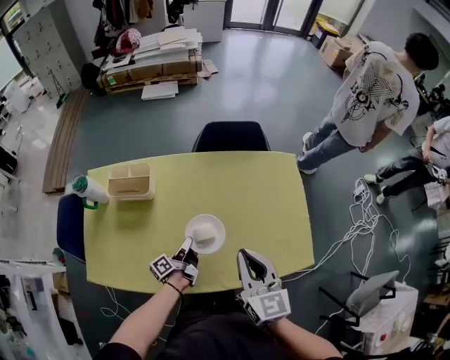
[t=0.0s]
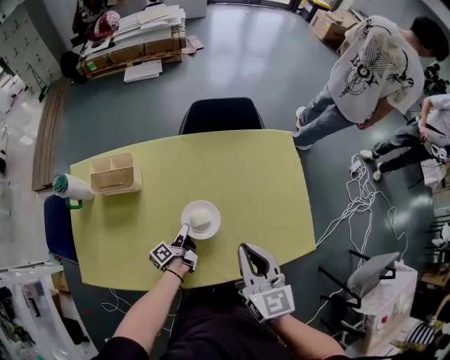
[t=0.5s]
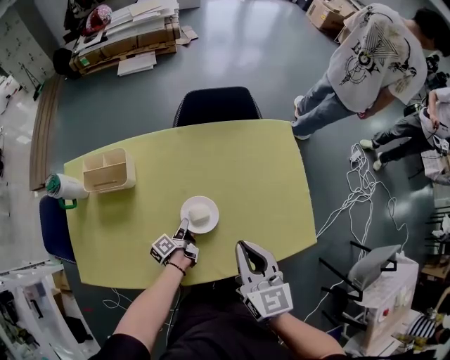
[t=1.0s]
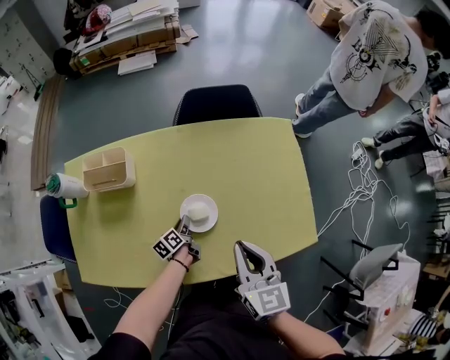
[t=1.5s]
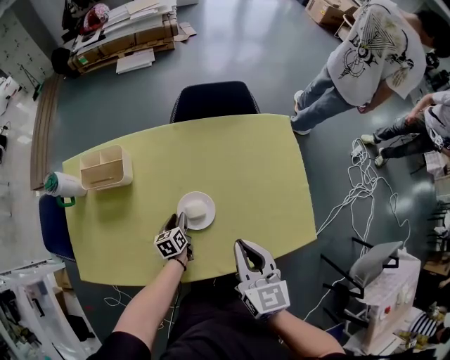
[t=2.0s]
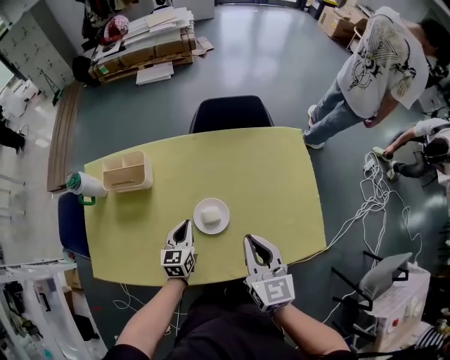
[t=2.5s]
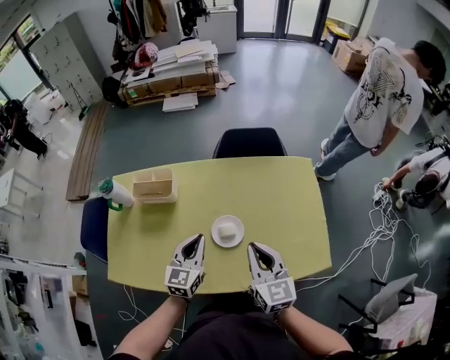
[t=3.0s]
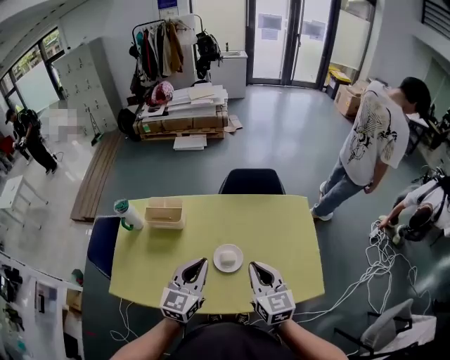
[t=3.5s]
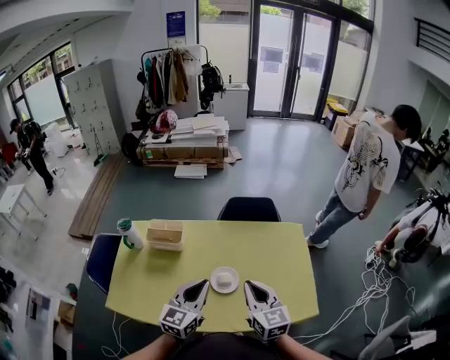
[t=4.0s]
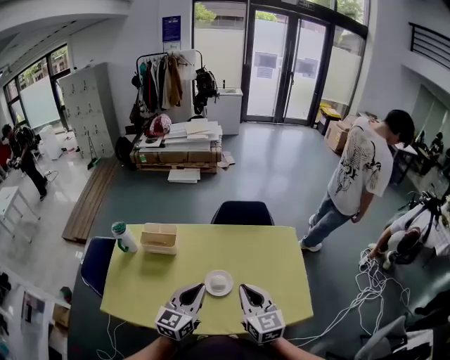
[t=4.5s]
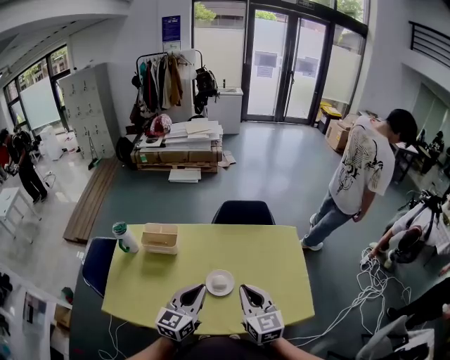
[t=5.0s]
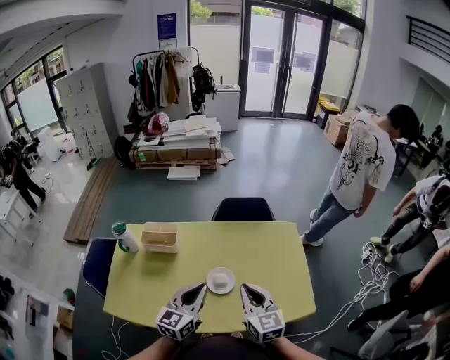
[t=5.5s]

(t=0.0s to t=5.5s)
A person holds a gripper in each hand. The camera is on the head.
t=0.0s - t=2.0s: Both grippers move downward, approximately 10 cm. The left gripper rolls clockwise, seen from behind, by some 50 degrees, and opens up.
t=2.0s - t=3.5s: The right gripper moves upward, roughly 10 cm. Meanwhile the left gripper is displaced upward by approximately 40 cm, angles its fingers upward, by about 30 degrees, and closes up.
t=3.5s - t=5.5s: The grippers make only small movements.

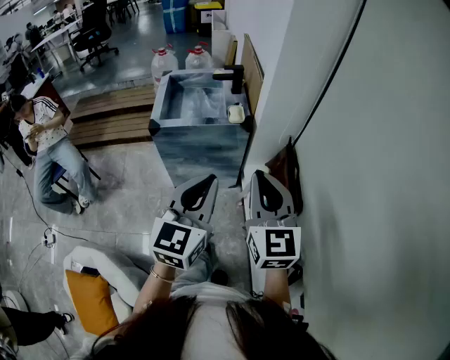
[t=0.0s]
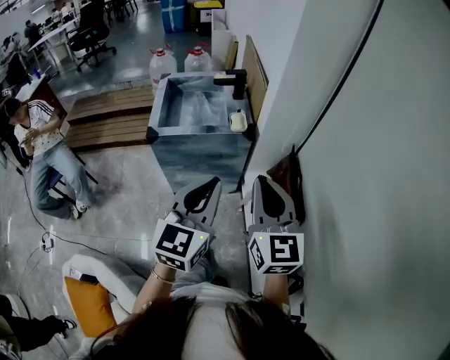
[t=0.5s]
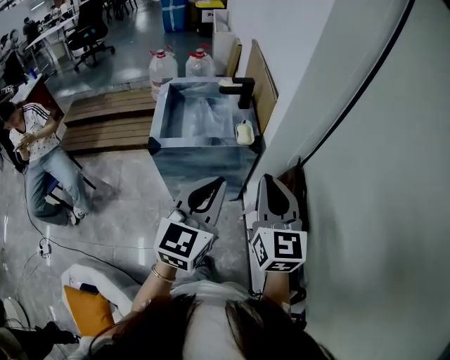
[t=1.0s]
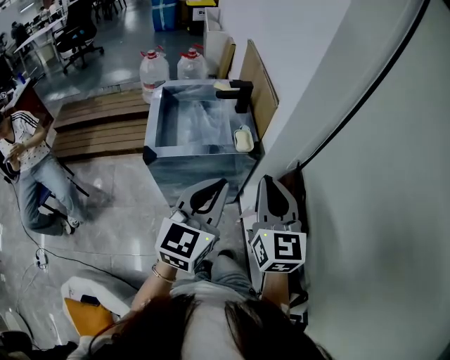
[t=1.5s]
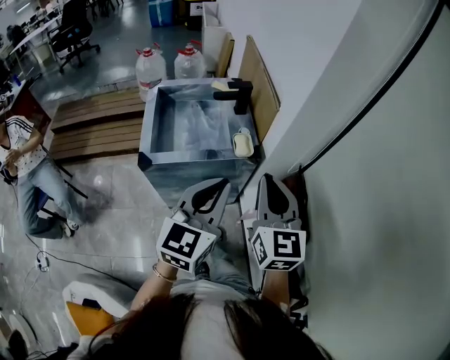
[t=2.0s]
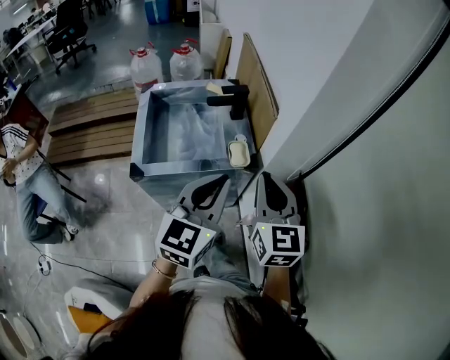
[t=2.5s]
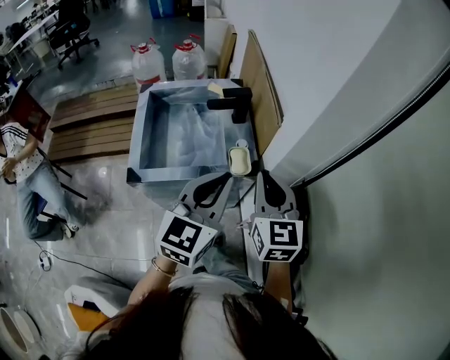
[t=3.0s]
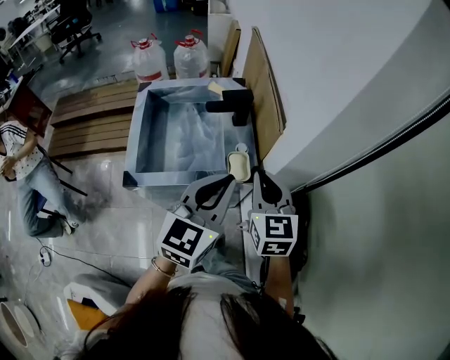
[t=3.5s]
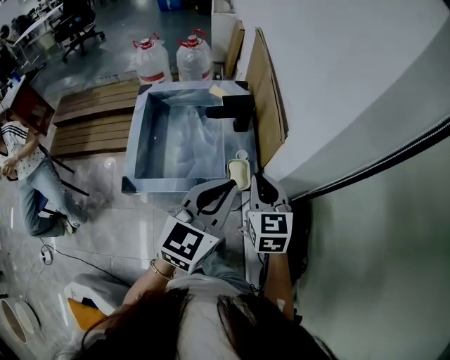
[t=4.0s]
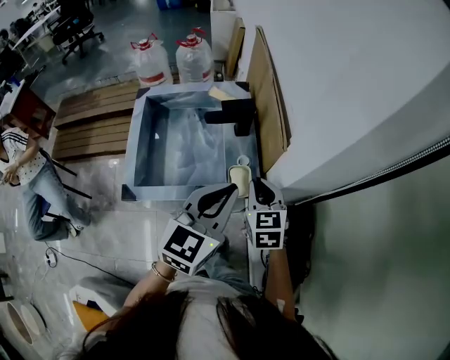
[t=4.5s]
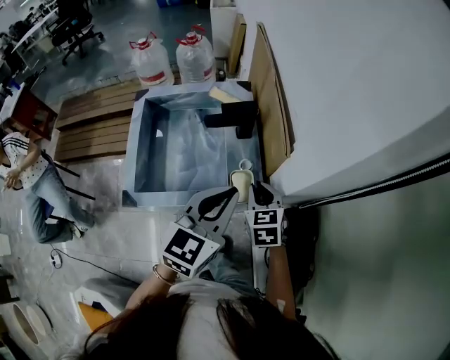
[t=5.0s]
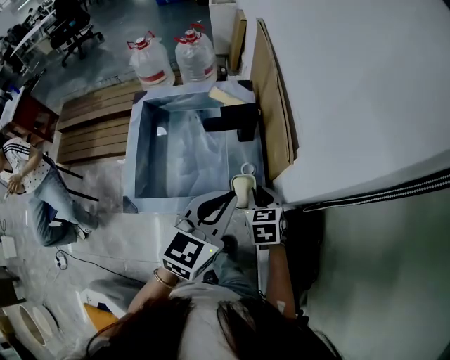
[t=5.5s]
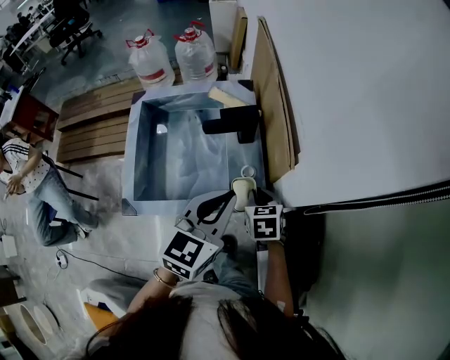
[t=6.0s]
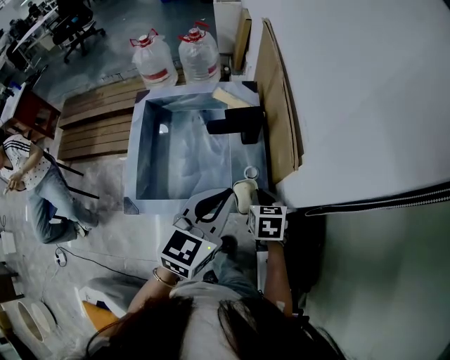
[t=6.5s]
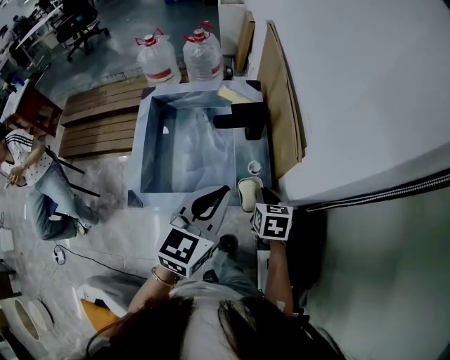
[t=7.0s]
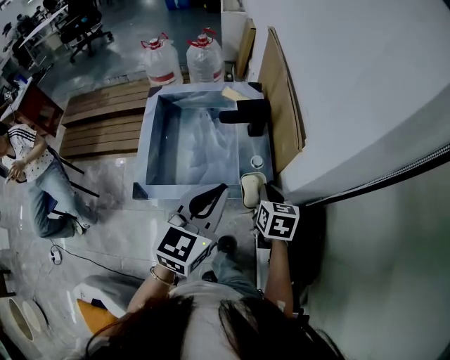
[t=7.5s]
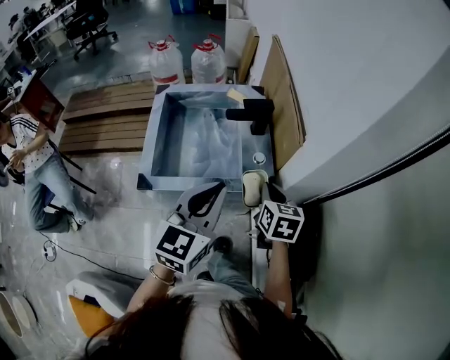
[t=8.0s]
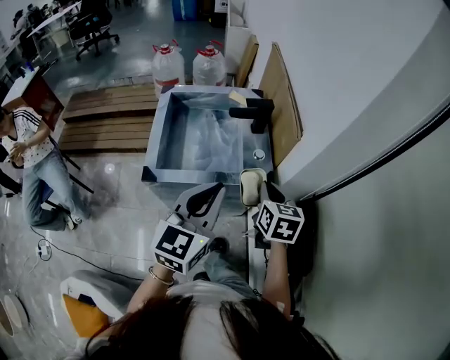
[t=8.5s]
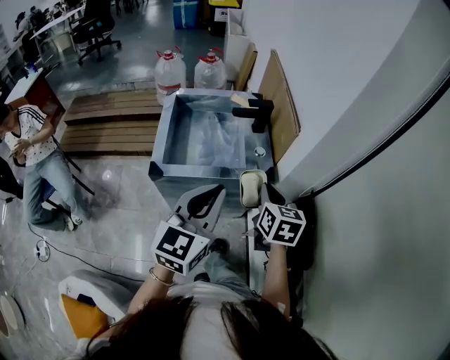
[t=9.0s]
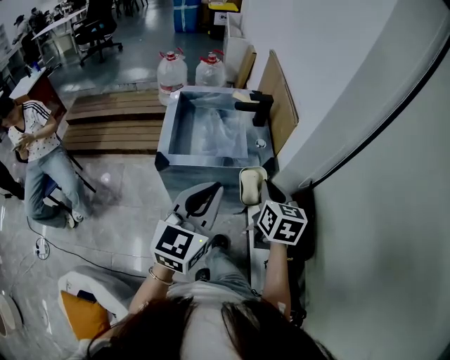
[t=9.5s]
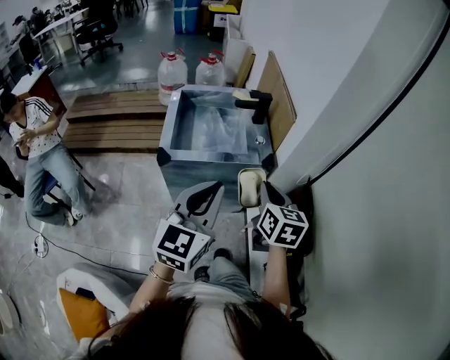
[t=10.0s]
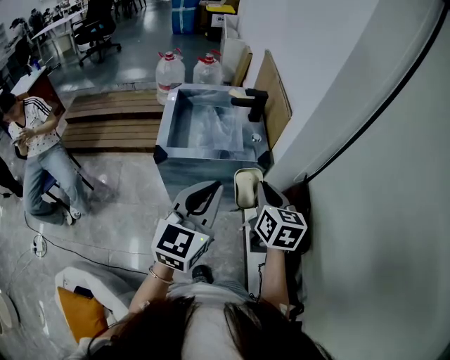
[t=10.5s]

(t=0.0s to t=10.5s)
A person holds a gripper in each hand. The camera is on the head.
t=0.0s - t=2.0s: Both grippers travel together forward, approximately 20 cm.
t=2.0s - t=4.0s: The right gripper moves forward and downward, approximately 25 cm; the left gripper heads forward, covering some 20 cm.
t=4.0s - t=6.5s: The left gripper shifts about 10 cm forward and downward. Meanwhile the right gripper heads downward and forward, covering some 20 cm, and changes its angle by approximately 30 degrees.
t=6.5s - t=8.5s: The right gripper shifts some 20 cm upward and backward. Meanwhile the left gripper goes some 15 cm backward and upward.
t=8.5s - t=10.5s: The right gripper moves backward and upward, some 20 cm, while the left gripper moves backward, some 15 cm.

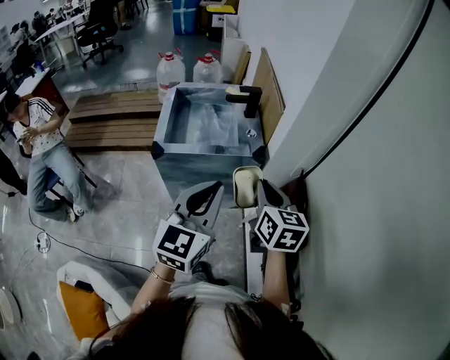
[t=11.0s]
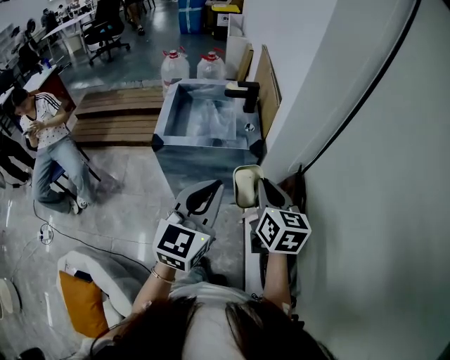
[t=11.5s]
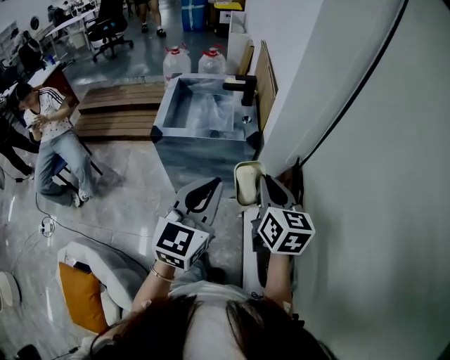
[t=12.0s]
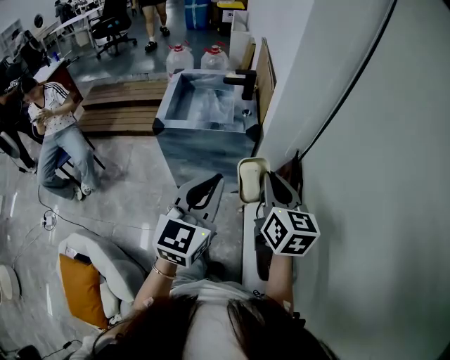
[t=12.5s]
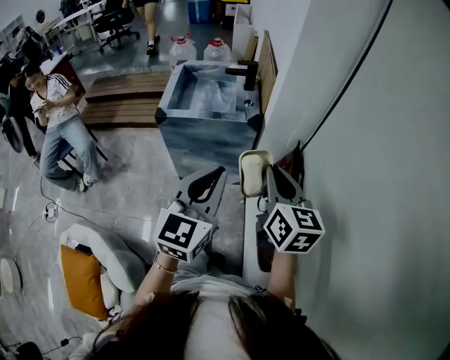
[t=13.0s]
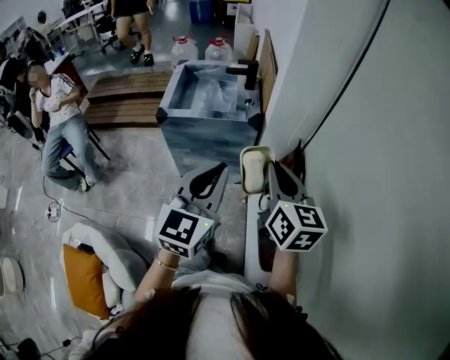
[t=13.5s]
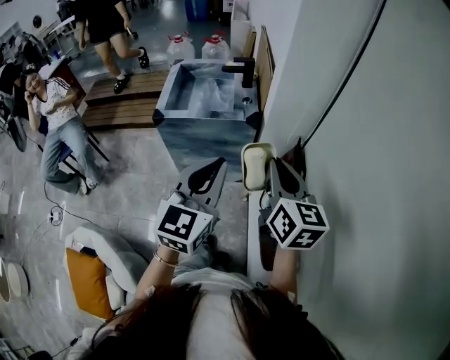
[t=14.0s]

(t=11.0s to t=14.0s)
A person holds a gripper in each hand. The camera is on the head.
t=11.0s - t=12.5s: The grippers both shift backward and to the right by about 15 cm.
t=12.5s - t=14.0s: The grippers move only a little.

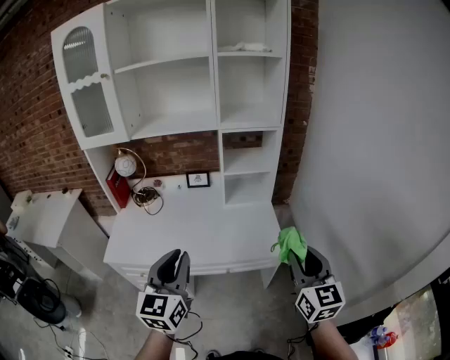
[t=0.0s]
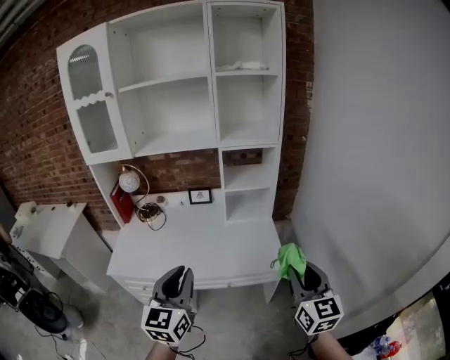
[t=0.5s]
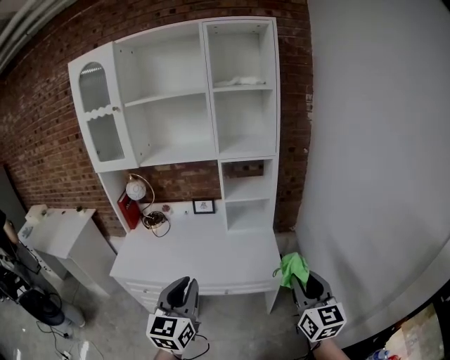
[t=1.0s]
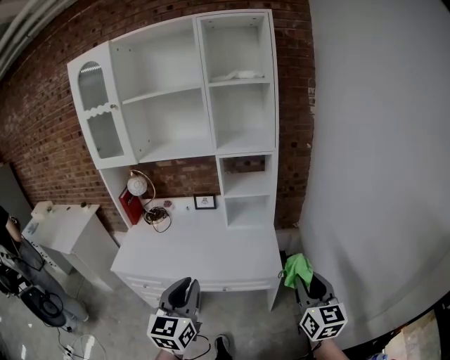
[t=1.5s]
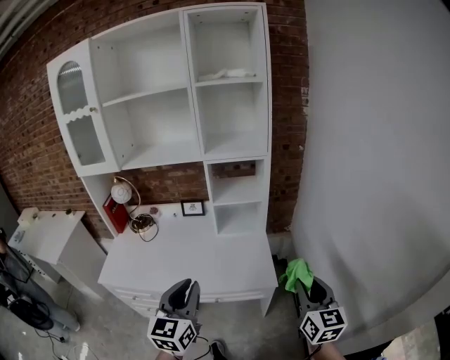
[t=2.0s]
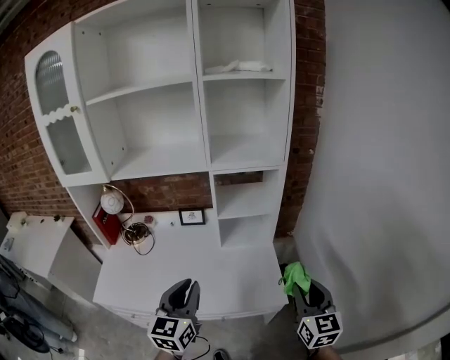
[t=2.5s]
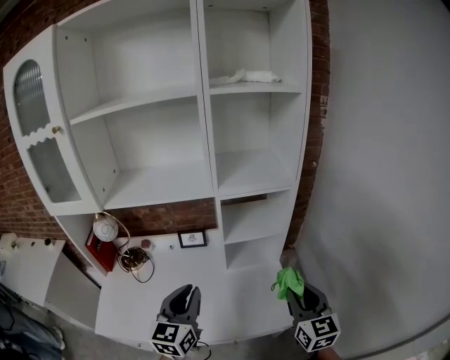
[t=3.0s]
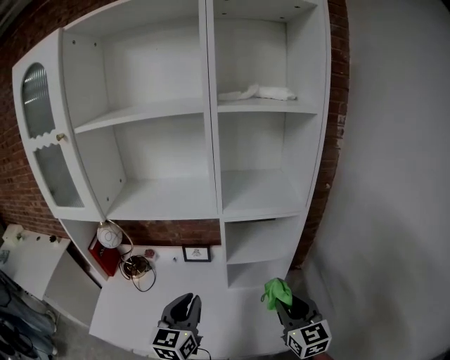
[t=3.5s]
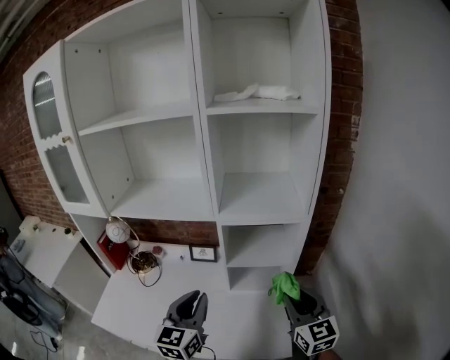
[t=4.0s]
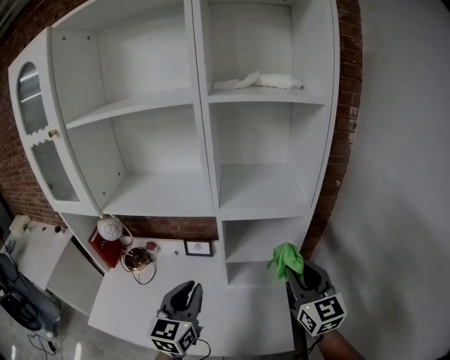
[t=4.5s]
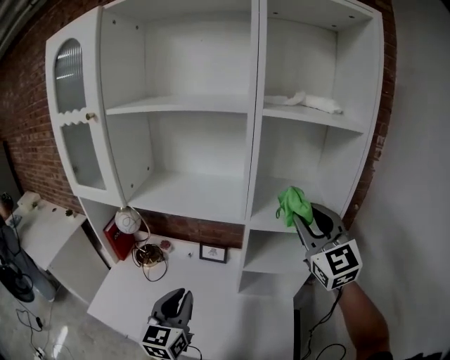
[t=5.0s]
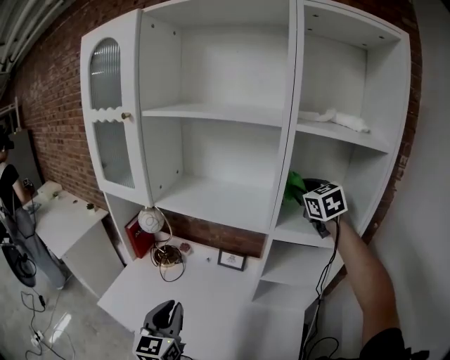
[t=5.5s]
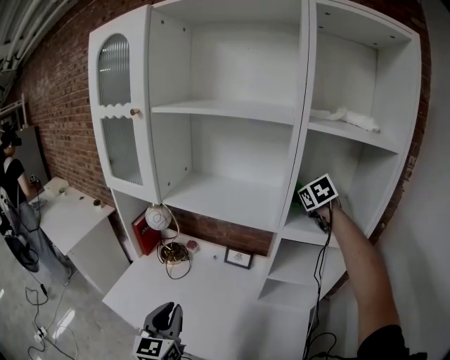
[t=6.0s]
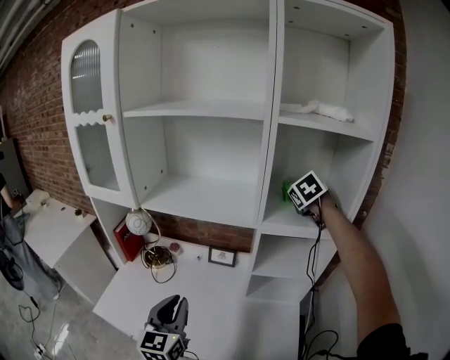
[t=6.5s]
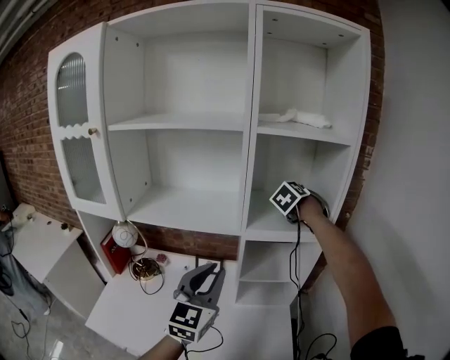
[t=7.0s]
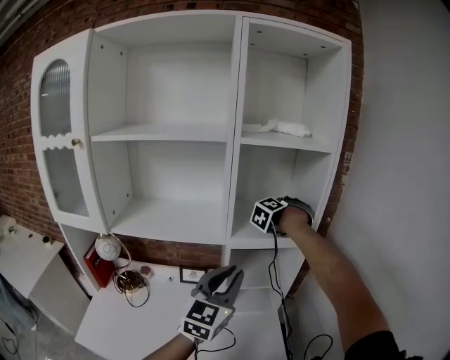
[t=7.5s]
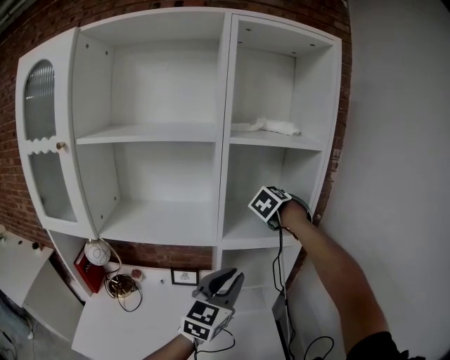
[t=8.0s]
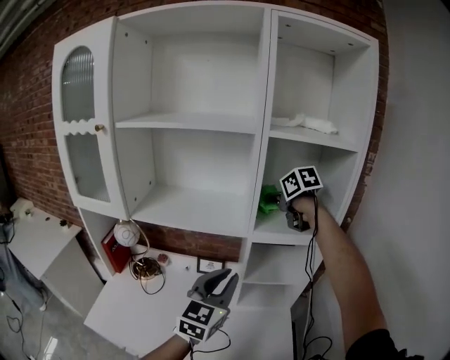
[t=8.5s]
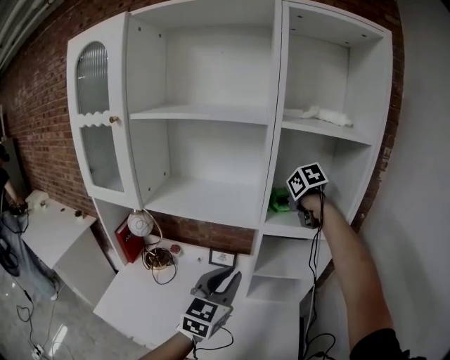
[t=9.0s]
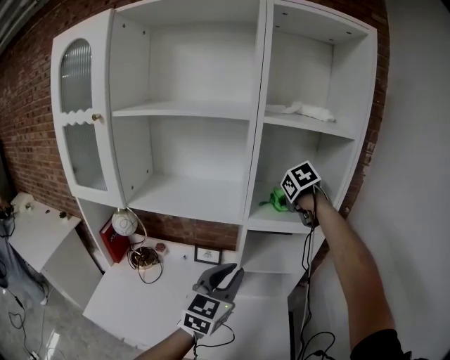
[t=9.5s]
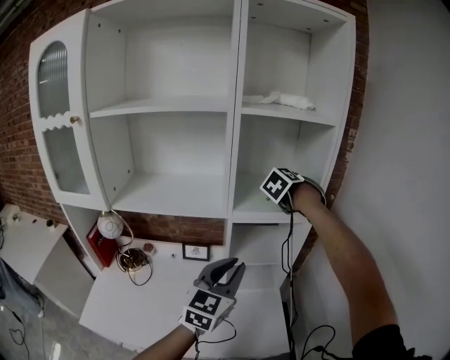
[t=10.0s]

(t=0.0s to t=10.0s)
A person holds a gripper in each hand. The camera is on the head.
t=0.0s - t=2.0s: The two grippers go approximately 10 cm to the right.
t=2.0s - t=4.0s: Both grippers move forward, approximately 30 cm.
t=4.0s - t=6.0s: The right gripper moves forward, about 35 cm, and changes its angle by some 30 degrees; the left gripper shifts some 20 cm to the left, and changes its angle by about 20 degrees.
t=6.0s - t=8.0s: The left gripper moves roughly 30 cm, and changes its angle by roughly 50 degrees, while the right gripper ends up some 15 cm from where it was, and rotates roughly 40 degrees.
